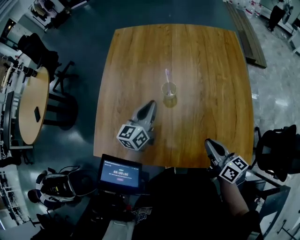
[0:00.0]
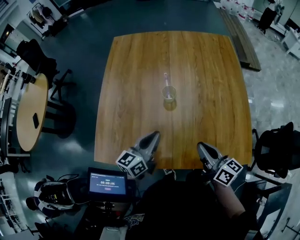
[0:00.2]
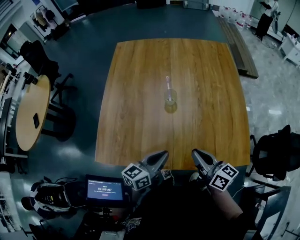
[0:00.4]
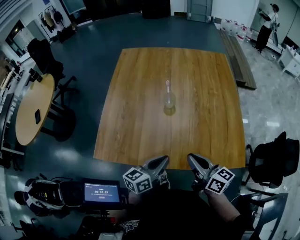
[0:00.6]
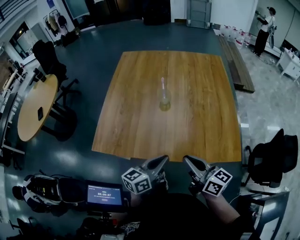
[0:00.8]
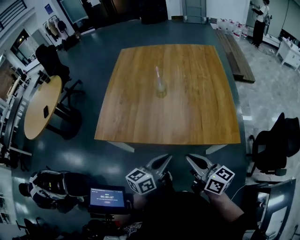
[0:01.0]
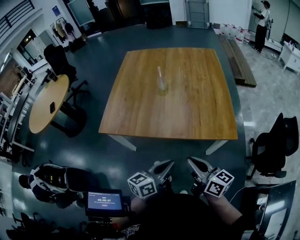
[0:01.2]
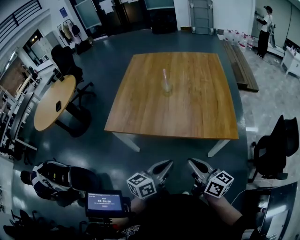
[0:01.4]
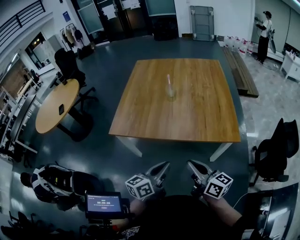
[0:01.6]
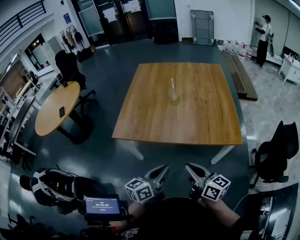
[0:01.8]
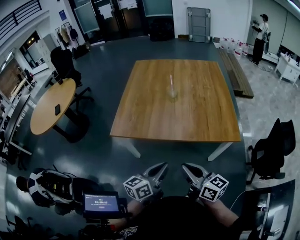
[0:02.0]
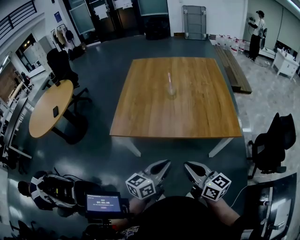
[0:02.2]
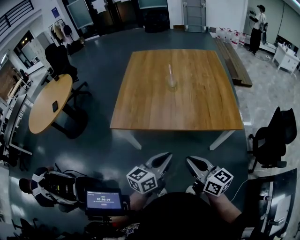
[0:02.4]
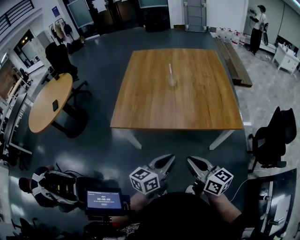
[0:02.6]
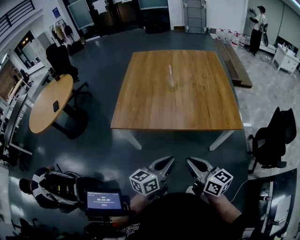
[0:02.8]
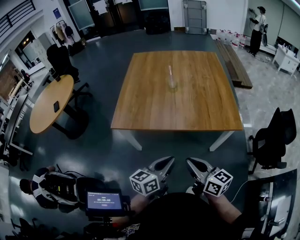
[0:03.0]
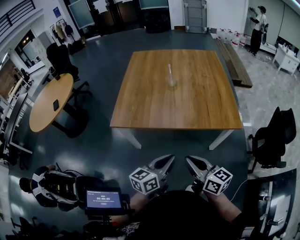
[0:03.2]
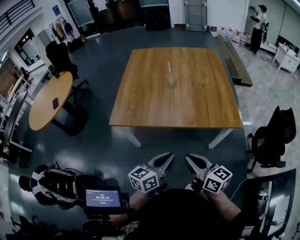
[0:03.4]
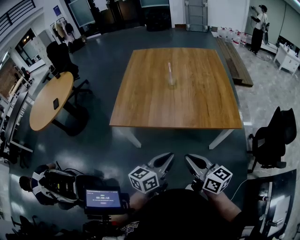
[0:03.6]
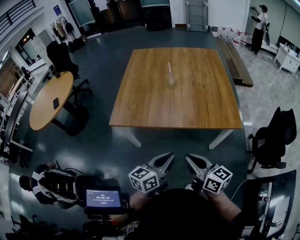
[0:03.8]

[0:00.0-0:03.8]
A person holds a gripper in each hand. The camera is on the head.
0:00.0 to 0:01.2: The right gripper is displaced backward by about 25 cm; the left gripper heads backward, covering some 40 cm, and changes its angle by roughly 20 degrees.
0:01.2 to 0:02.6: The right gripper shifts about 10 cm to the left and backward. Meanwhile the left gripper heads to the left, covering approximately 10 cm.
0:02.6 to 0:03.8: Neither gripper changes place.

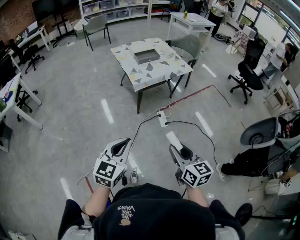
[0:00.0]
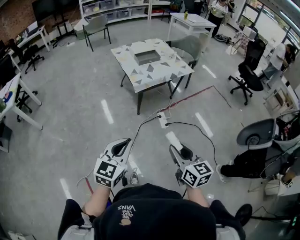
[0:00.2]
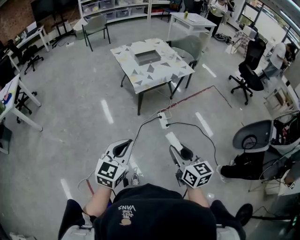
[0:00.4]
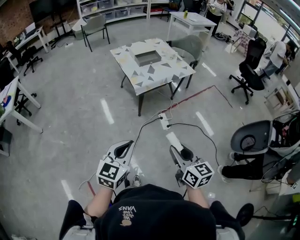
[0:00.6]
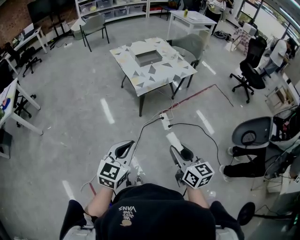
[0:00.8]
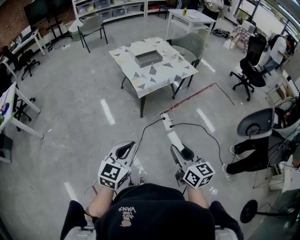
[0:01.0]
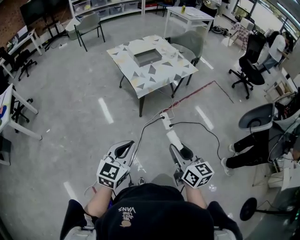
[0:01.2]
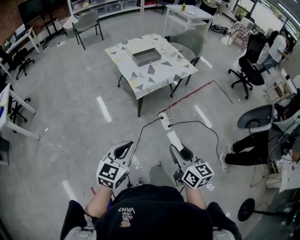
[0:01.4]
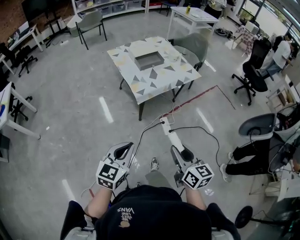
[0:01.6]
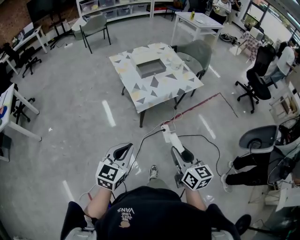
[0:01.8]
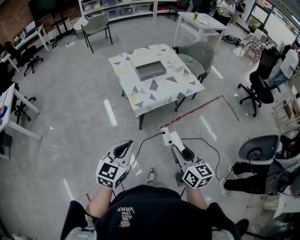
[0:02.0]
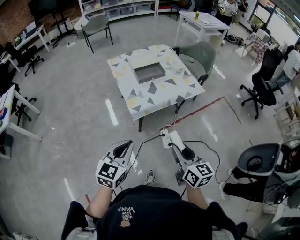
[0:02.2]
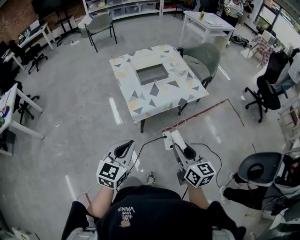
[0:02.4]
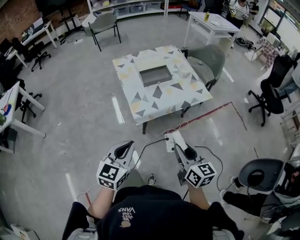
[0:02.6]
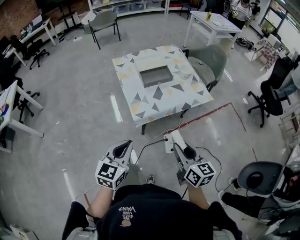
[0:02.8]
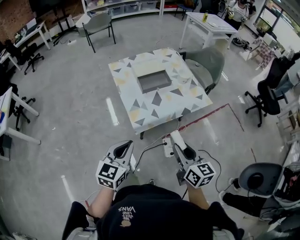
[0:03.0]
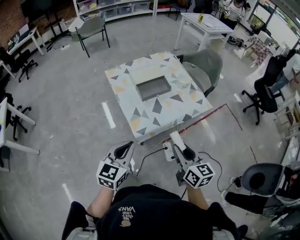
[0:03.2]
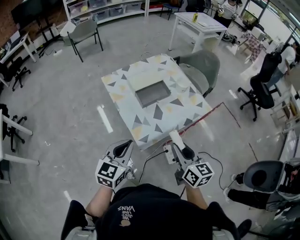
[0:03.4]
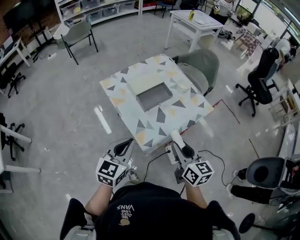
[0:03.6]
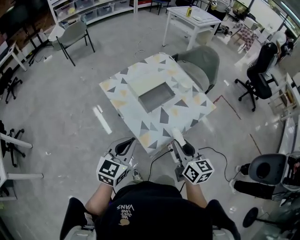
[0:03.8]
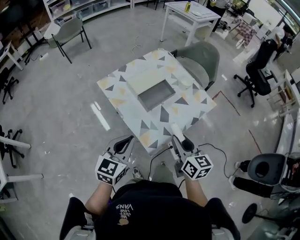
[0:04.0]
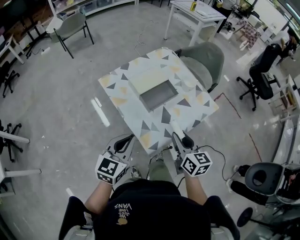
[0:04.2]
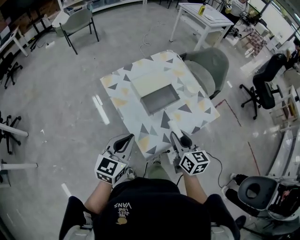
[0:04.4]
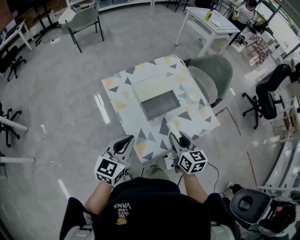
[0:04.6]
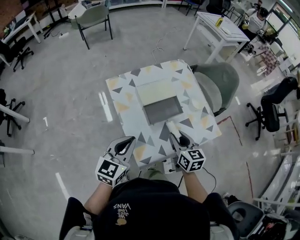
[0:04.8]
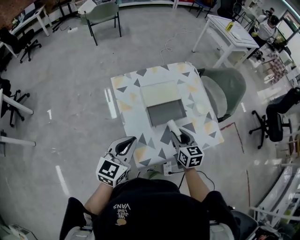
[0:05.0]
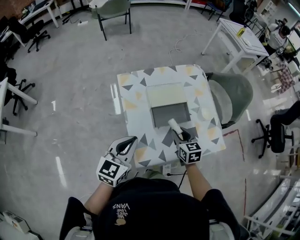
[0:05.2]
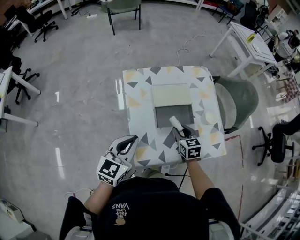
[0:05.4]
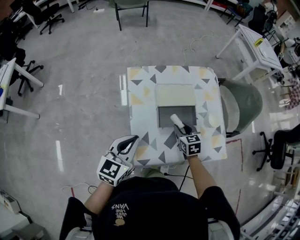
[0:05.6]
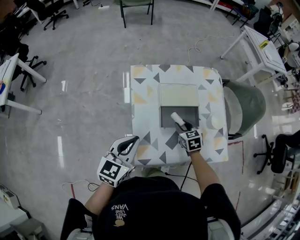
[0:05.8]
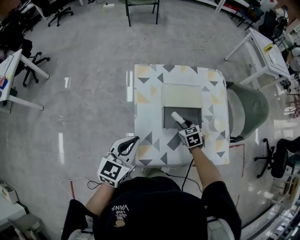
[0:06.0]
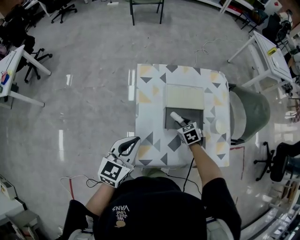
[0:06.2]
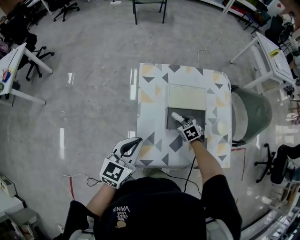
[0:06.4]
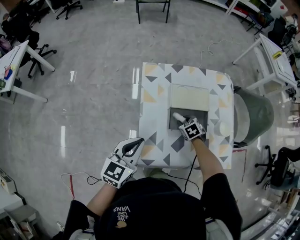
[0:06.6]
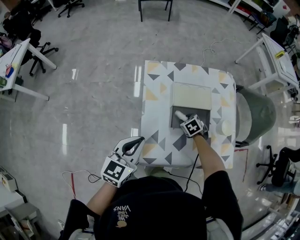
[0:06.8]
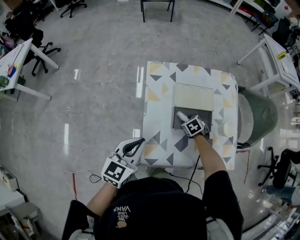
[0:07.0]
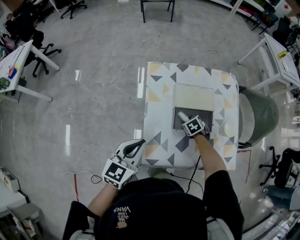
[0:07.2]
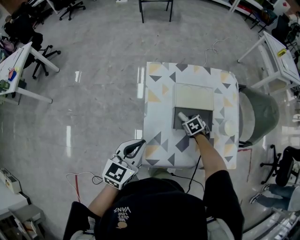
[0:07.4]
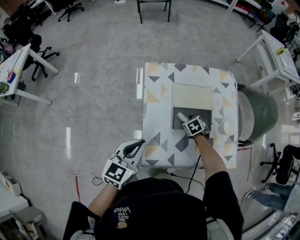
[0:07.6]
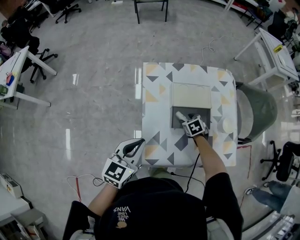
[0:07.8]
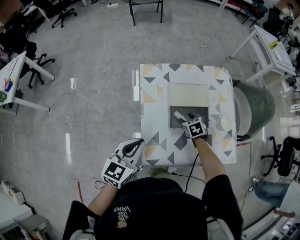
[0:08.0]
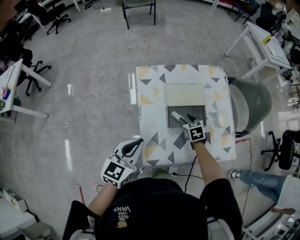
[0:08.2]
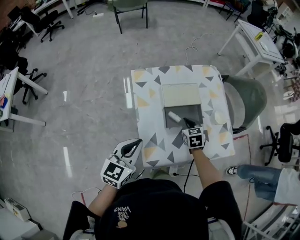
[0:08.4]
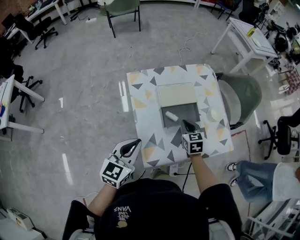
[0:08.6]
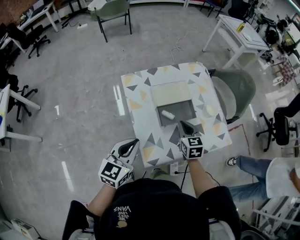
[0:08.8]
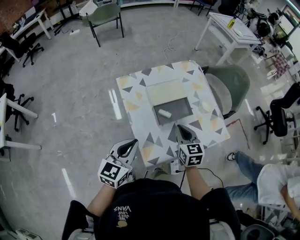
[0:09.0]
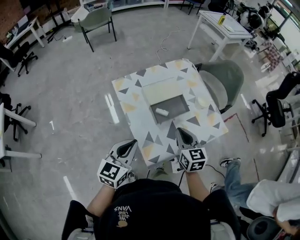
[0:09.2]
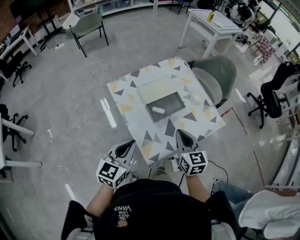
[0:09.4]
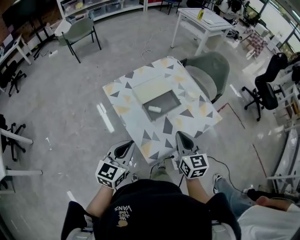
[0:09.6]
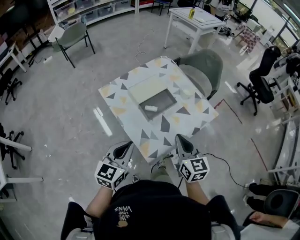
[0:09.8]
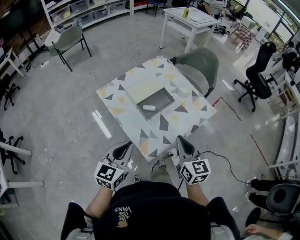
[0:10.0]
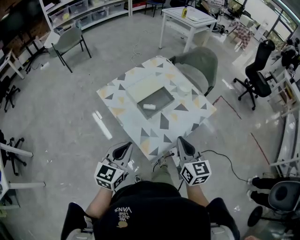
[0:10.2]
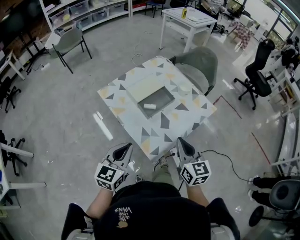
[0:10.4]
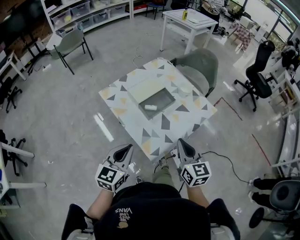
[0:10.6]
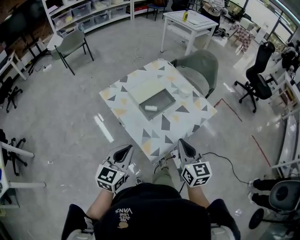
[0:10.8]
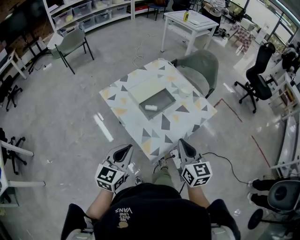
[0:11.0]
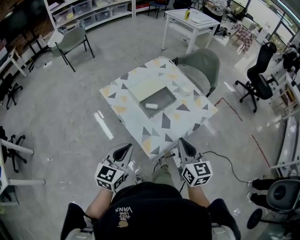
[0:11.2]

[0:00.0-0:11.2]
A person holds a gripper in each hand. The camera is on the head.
0:00.0 to 0:01.6: The grippers both shift forward by some 20 cm.
0:01.6 to 0:03.2: Both grippers travel together forward, some 35 cm.
0:03.2 to 0:04.8: The left gripper travels forward and to the left by some 25 cm; the right gripper goes some 30 cm forward.
0:04.8 to 0:06.4: The left gripper changes its angle by about 20 degrees, while the right gripper moves downward, about 20 cm, and tilts its fingers about 40 degrees downward.
0:06.4 to 0:08.0: The right gripper opens up.
0:08.0 to 0:09.6: The left gripper shifts by approximately 5 cm, and rotates roughly 30 degrees. The right gripper moves upward, some 25 cm, points its fingers roughly 40 degrees further upward, and closes its fingers.
0:09.6 to 0:11.2: The left gripper shifts approximately 5 cm backward, while the right gripper travels backward by roughly 10 cm.

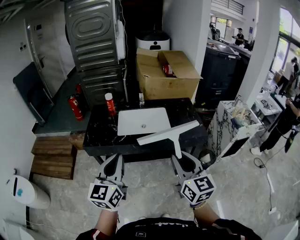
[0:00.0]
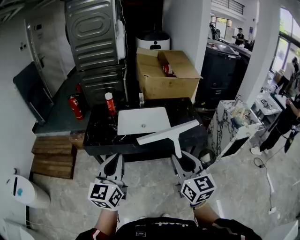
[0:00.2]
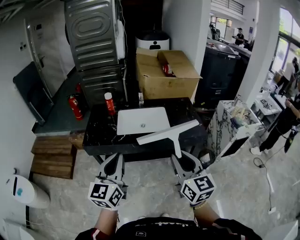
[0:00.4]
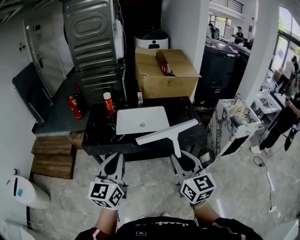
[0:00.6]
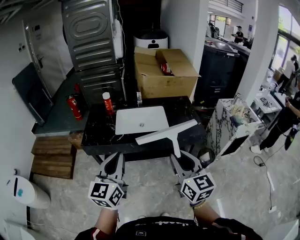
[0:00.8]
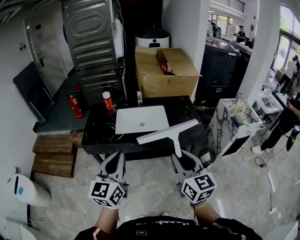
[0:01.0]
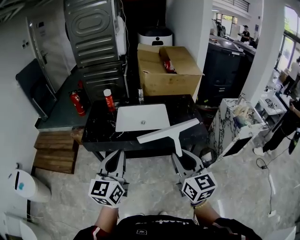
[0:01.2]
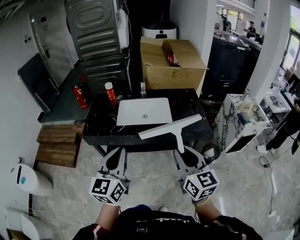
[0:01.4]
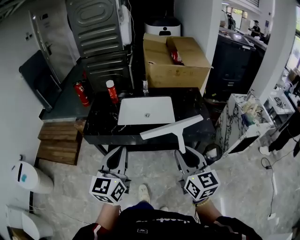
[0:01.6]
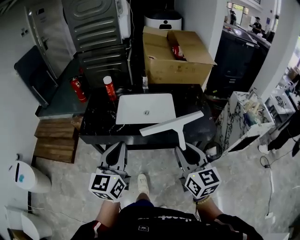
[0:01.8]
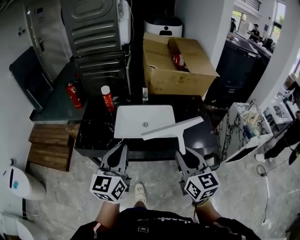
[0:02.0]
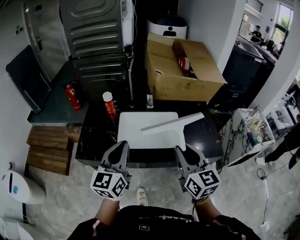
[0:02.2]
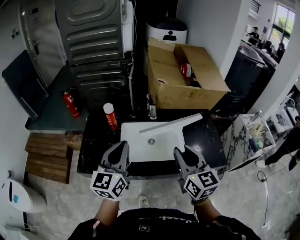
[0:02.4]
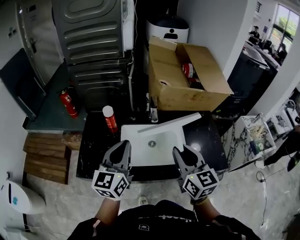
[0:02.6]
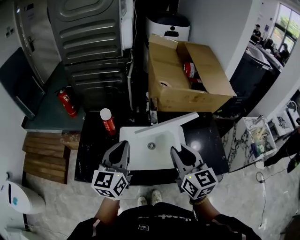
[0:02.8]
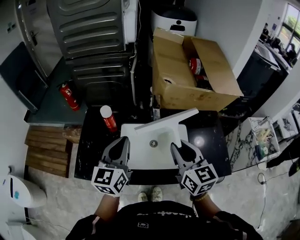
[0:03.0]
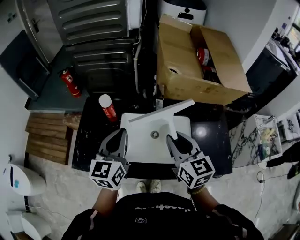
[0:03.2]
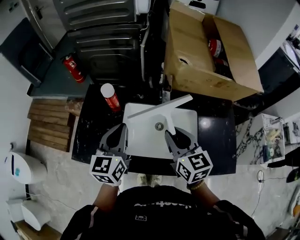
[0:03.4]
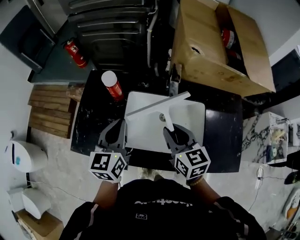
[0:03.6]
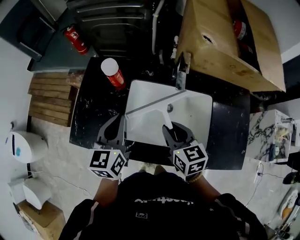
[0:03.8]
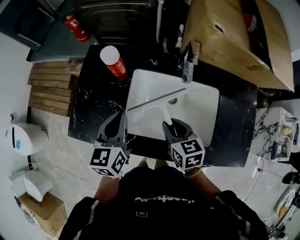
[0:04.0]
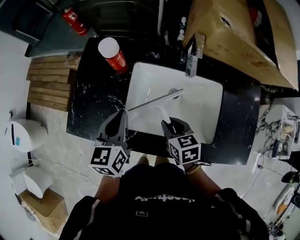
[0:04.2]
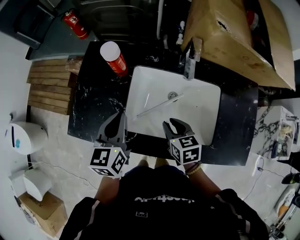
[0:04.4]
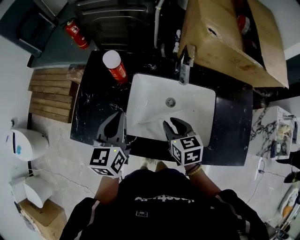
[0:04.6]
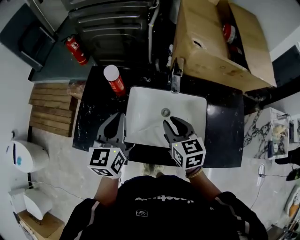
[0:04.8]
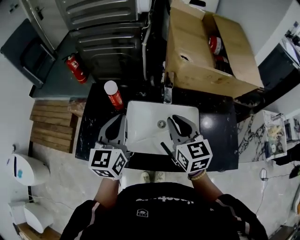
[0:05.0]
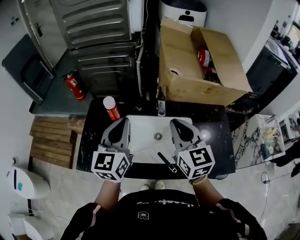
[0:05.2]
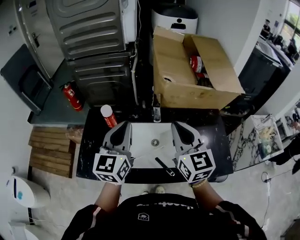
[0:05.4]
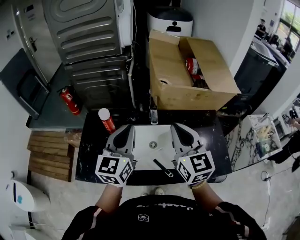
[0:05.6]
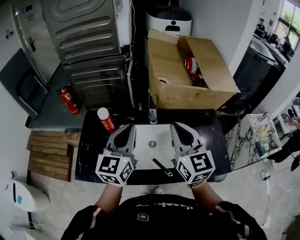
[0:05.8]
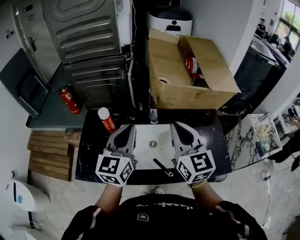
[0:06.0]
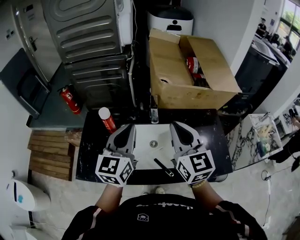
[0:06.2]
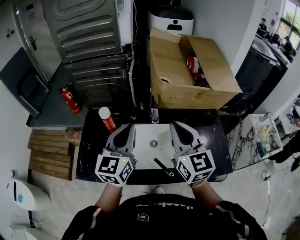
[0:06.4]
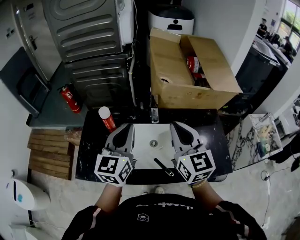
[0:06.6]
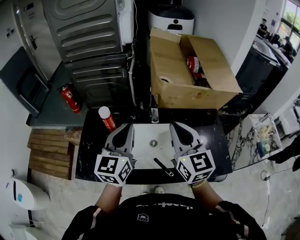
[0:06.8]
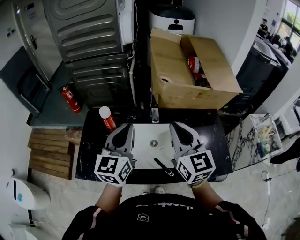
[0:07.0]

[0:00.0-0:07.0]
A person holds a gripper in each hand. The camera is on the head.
0:00.0 to 0:01.4: Both grippers move to the right, roughly 5 cm.
0:01.4 to 0:02.8: The two grippers travel together, forward, about 40 cm.
0:02.8 to 0:04.2: The left gripper heads downward, covering about 20 cm, and turns by roughly 30 degrees. Meanwhile the right gripper moves downward, about 30 cm, and angles its fingers downward, by about 40 degrees.
0:04.2 to 0:05.6: The left gripper goes about 25 cm upward and to the right, and turns by about 30 degrees. Meanwhile the right gripper is displaced upward by roughly 35 cm, and tilts its fingers about 40 degrees upward.
0:05.6 to 0:07.0: Neither gripper changes place.

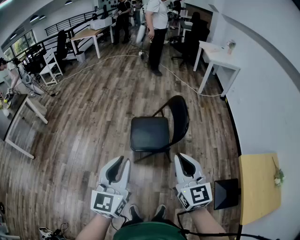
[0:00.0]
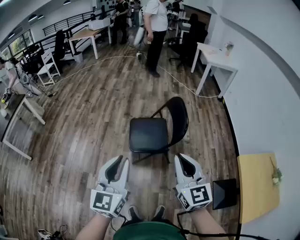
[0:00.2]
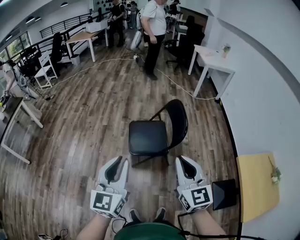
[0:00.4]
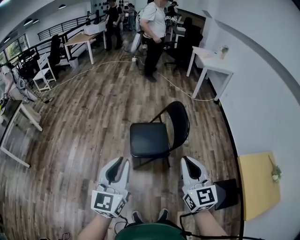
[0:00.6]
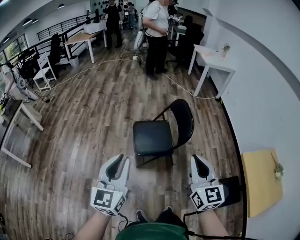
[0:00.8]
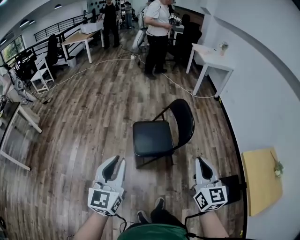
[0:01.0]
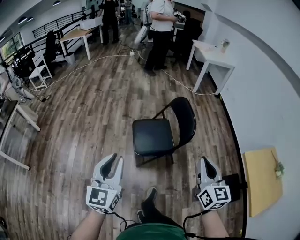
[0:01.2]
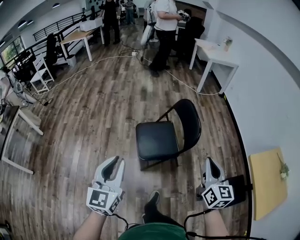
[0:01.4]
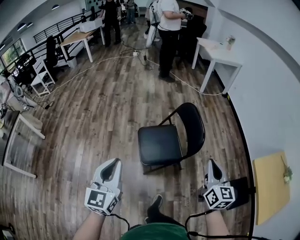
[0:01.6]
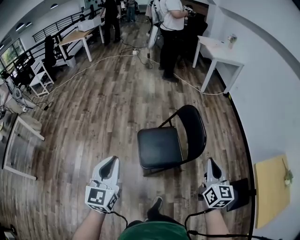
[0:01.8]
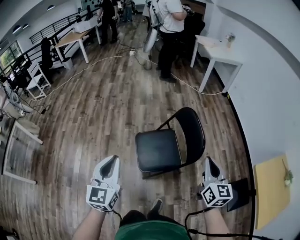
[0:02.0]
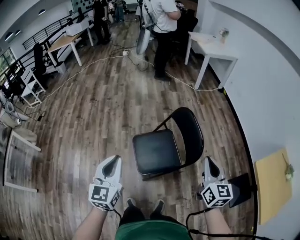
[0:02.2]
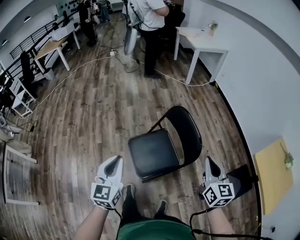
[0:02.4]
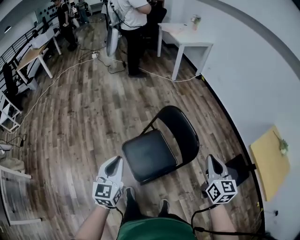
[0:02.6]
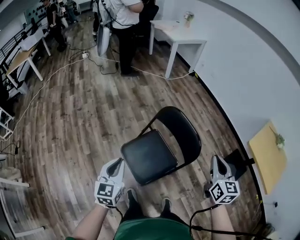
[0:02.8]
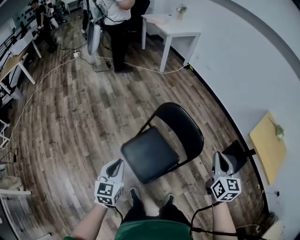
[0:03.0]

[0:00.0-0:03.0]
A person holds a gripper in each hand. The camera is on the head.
0:00.0 to 0:01.6: The right gripper is displaced forward and downward by about 15 cm, and swivels approximately 30 degrees. Meanwhile the left gripper heads to the left and forward, covering approximately 25 cm.
0:01.6 to 0:03.0: The left gripper shifts by approximately 40 cm, and changes its angle by some 30 degrees. Meanwhile the right gripper shifts by about 15 cm, and swivels about 30 degrees.
